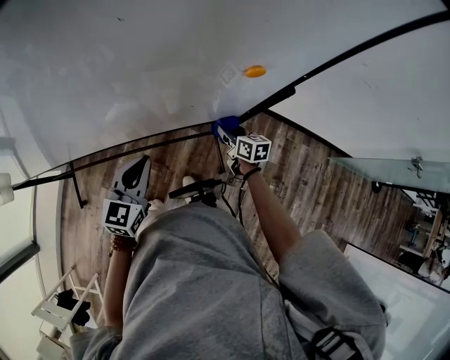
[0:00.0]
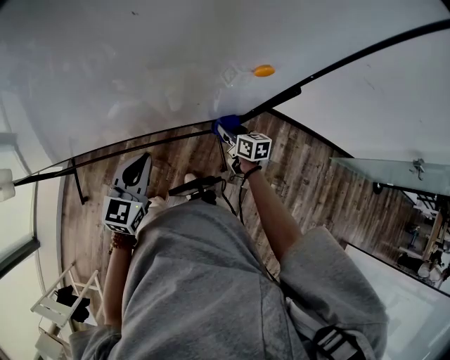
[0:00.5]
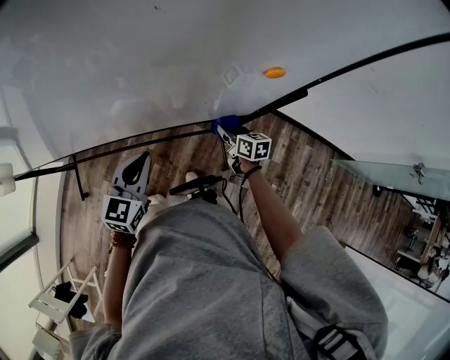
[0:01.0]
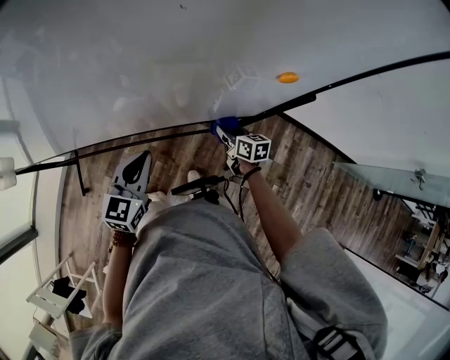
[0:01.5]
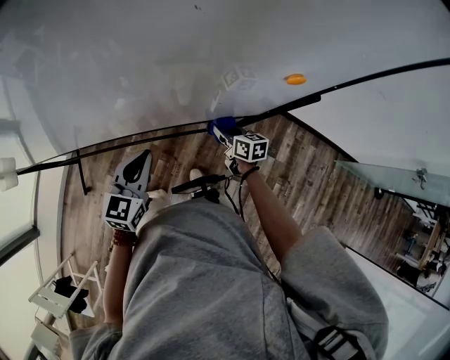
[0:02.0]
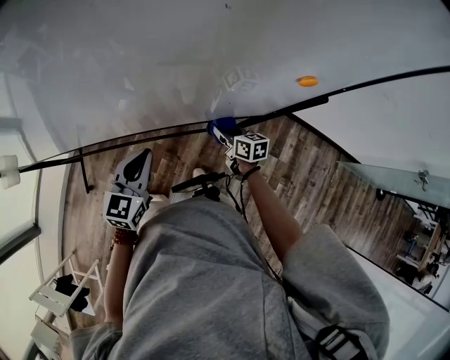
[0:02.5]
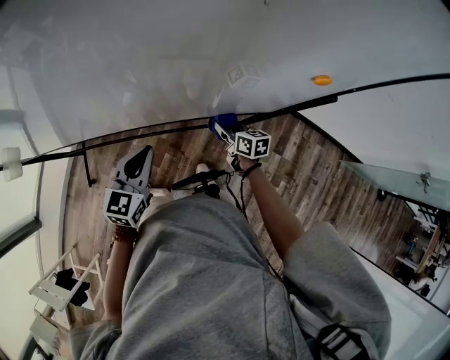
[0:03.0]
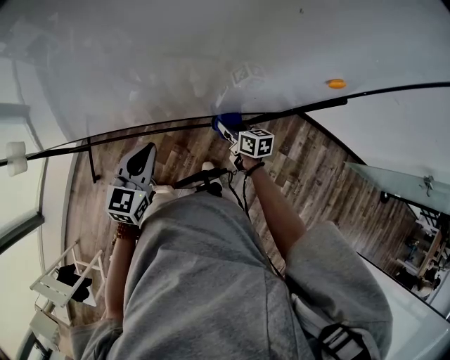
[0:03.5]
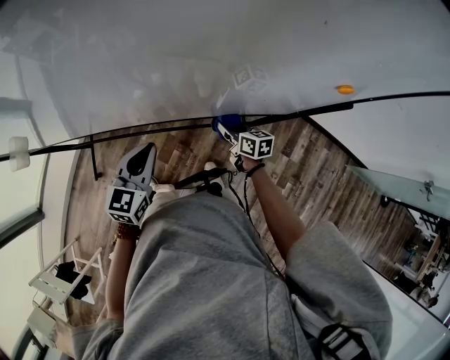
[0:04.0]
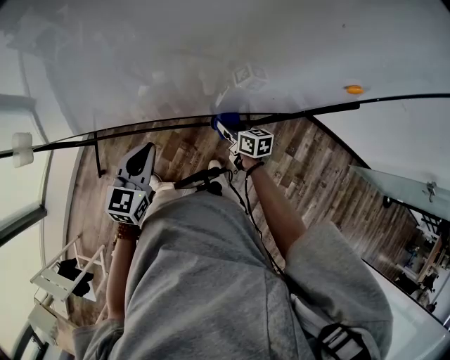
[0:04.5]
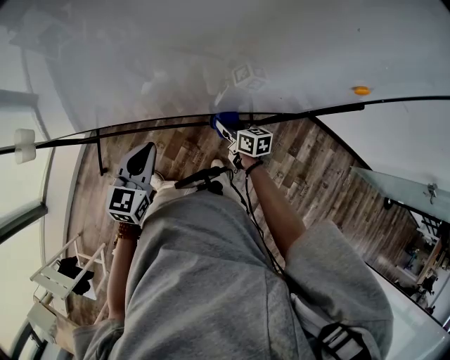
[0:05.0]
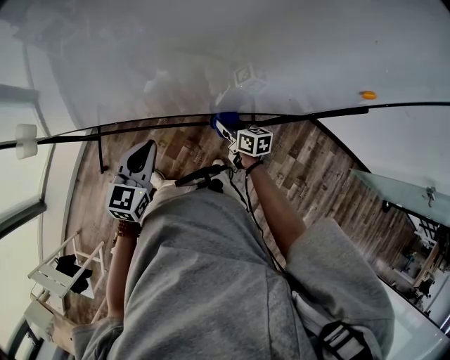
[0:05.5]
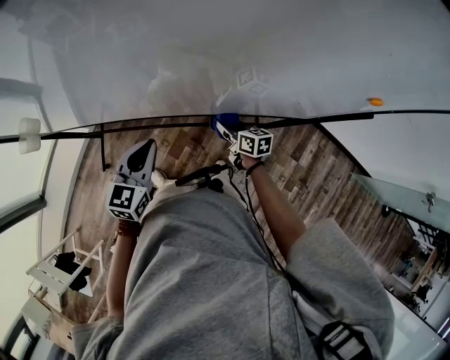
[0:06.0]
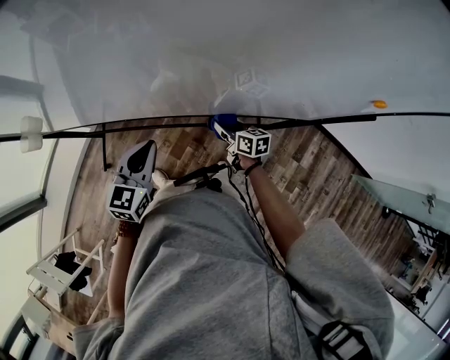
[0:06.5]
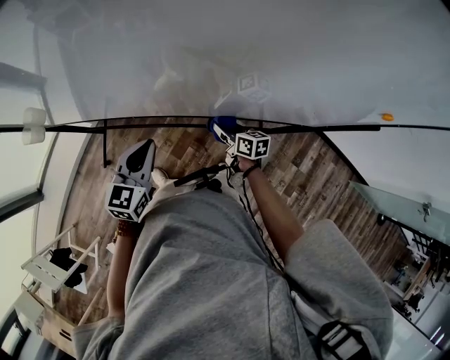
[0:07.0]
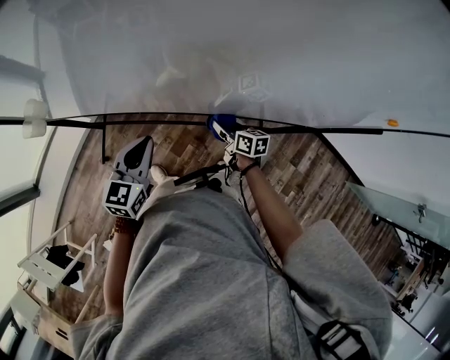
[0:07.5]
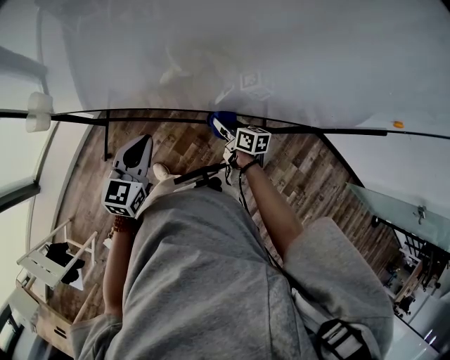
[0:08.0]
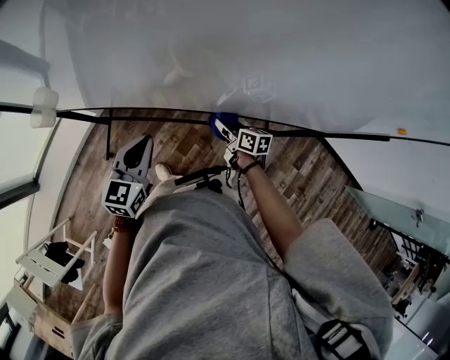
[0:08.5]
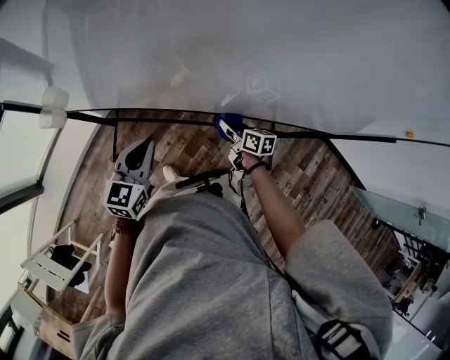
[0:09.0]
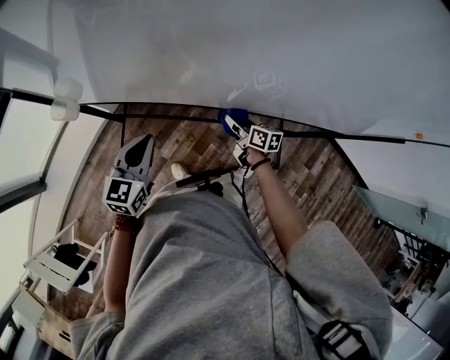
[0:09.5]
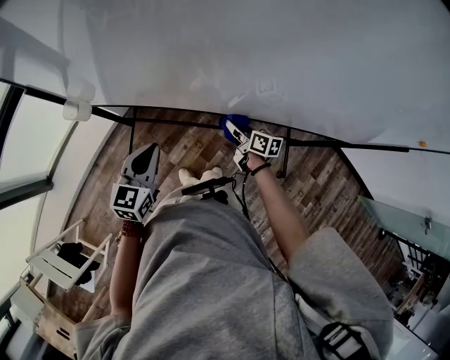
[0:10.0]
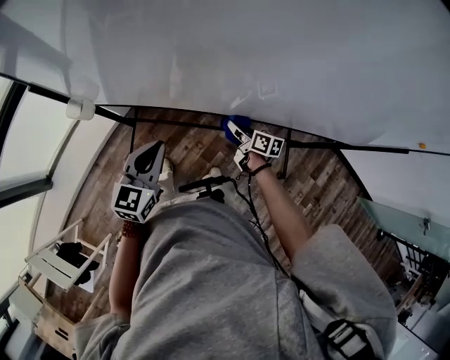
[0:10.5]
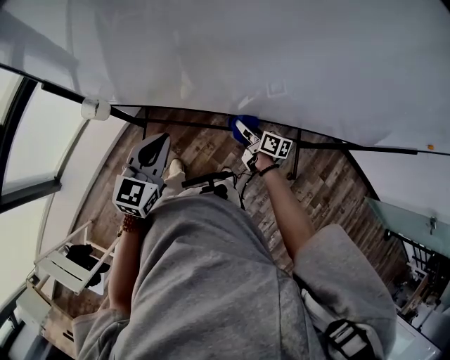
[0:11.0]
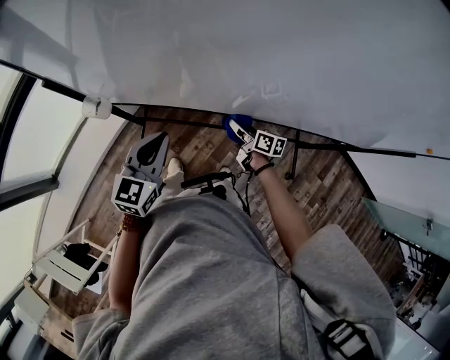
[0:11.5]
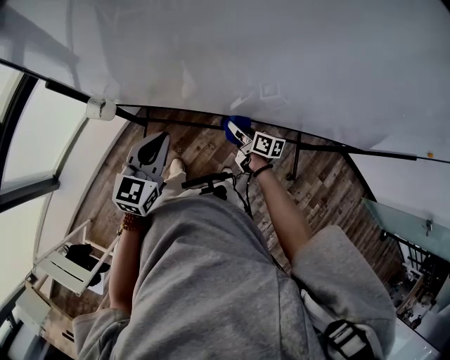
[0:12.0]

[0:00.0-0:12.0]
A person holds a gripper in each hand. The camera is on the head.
0:00.0 to 0:02.0: The left gripper changes place by roughly 5 cm. Meanwhile the right gripper heads to the left, covering some 10 cm.
0:02.0 to 0:04.0: The grippers both shift to the left by approximately 10 cm.
0:04.0 to 0:06.0: The two grippers go about 10 cm to the left.
0:06.0 to 0:08.0: The two grippers go roughly 10 cm to the left.
0:08.0 to 0:10.0: Both grippers travel together to the left, some 15 cm.
0:10.0 to 0:12.0: Both grippers travel together to the left, roughly 10 cm.

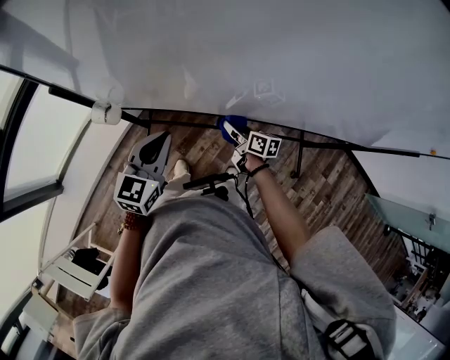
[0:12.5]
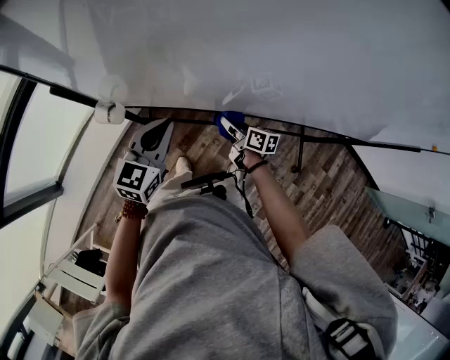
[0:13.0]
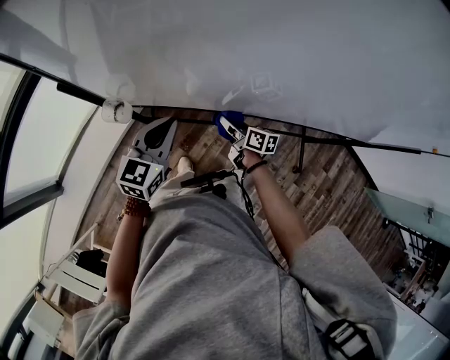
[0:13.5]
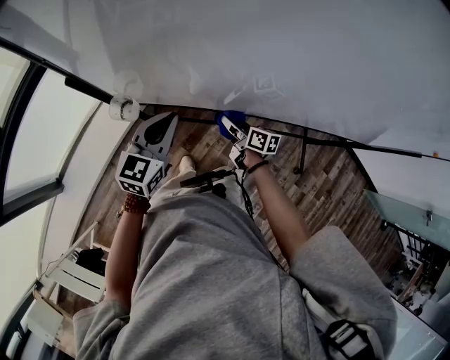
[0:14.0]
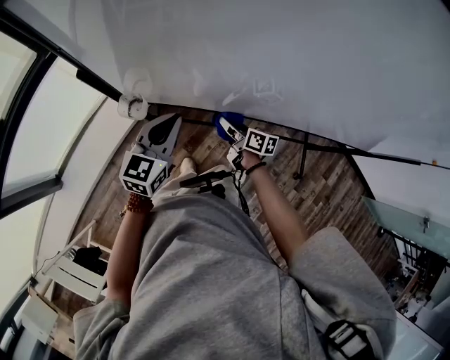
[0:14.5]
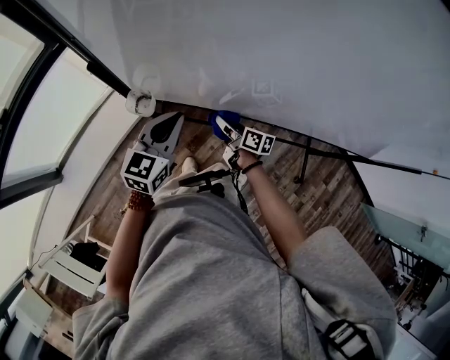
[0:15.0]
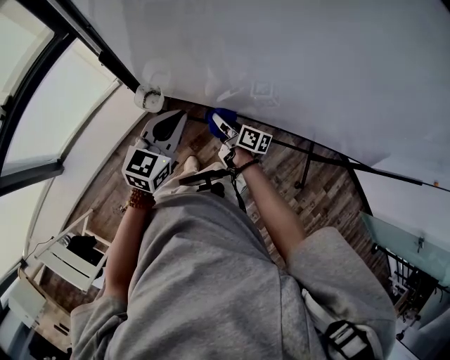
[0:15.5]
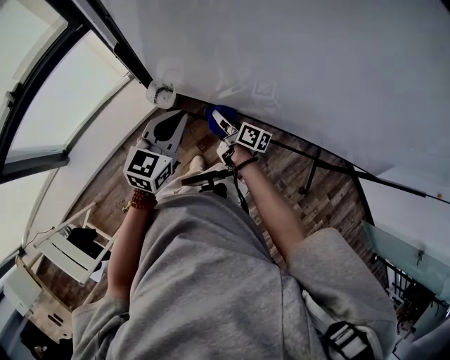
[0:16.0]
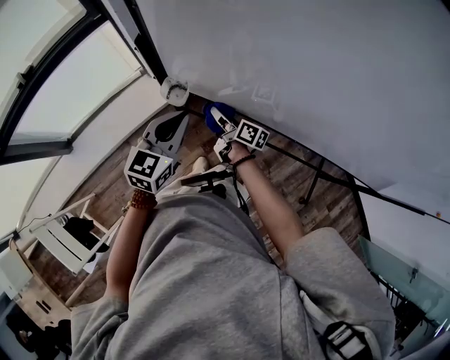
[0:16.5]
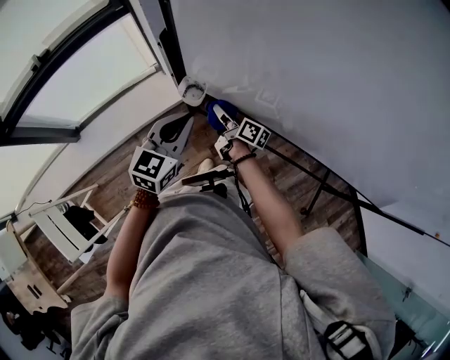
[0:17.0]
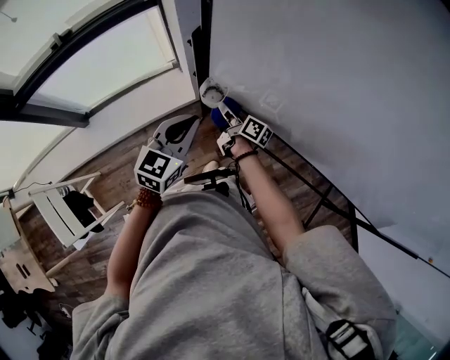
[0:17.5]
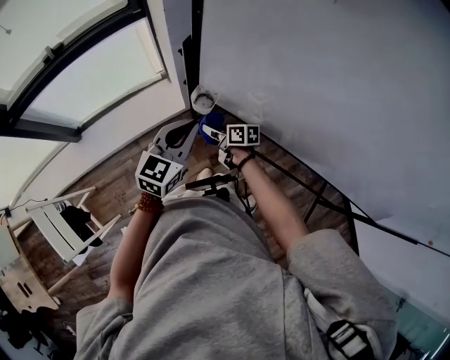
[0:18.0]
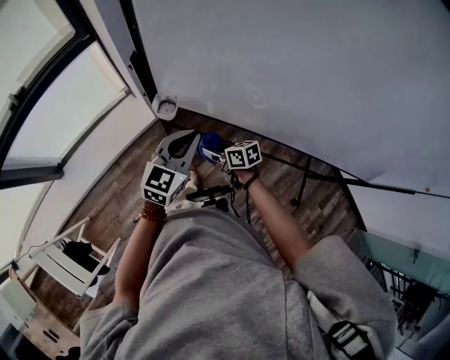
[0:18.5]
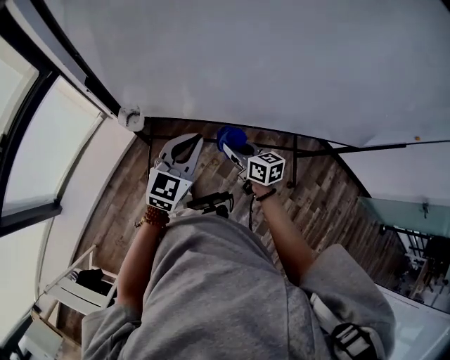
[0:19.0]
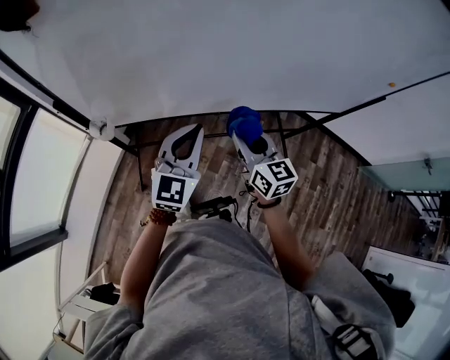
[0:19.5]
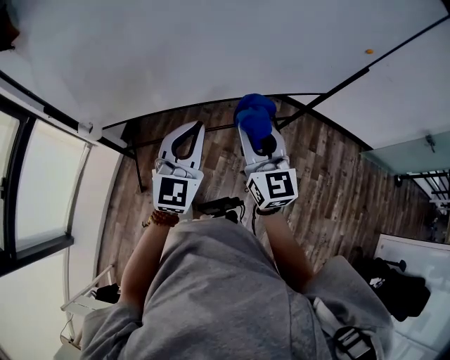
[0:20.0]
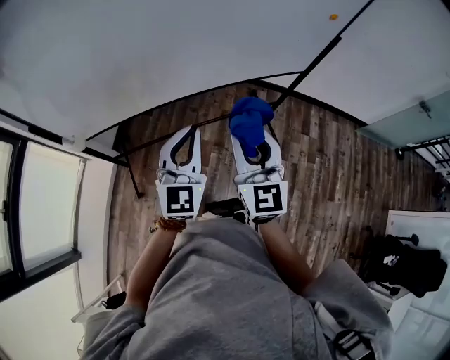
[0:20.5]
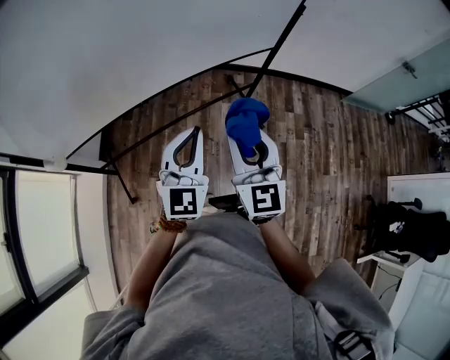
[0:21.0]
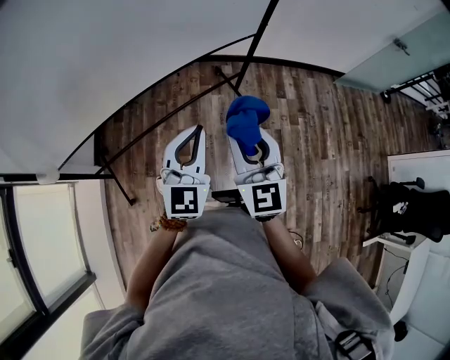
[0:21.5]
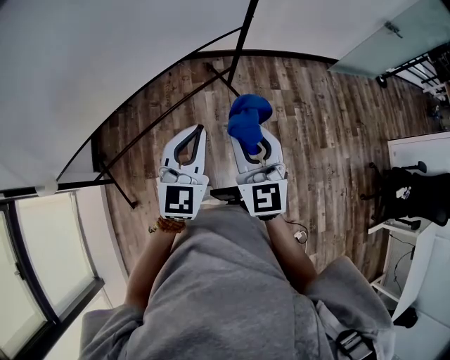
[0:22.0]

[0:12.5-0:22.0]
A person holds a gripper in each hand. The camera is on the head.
0:12.5 to 0:14.5: The two grippers go some 10 cm to the left.
0:14.5 to 0:16.5: The right gripper heads to the left, covering about 15 cm; the left gripper goes about 10 cm to the left.
0:16.5 to 0:18.0: The right gripper moves to the left, some 10 cm, and turns by roughly 30 degrees.
0:18.0 to 0:20.0: The pair of grippers is taken roughly 50 cm. The left gripper swivels about 40 degrees, while the right gripper rotates some 90 degrees.
0:20.0 to 0:22.0: The left gripper heads to the right, covering roughly 30 cm, and turns by about 20 degrees. The right gripper is displaced to the right and backward by about 25 cm, and turns by some 30 degrees.

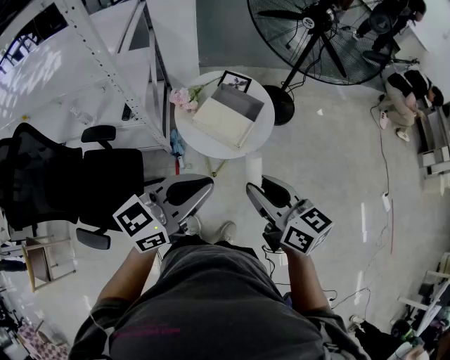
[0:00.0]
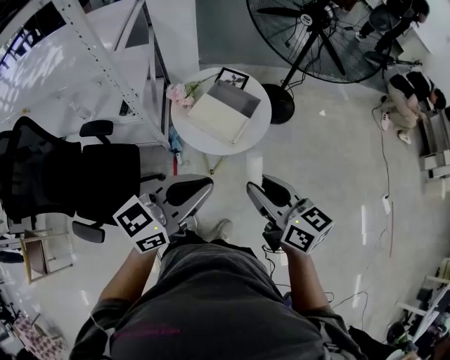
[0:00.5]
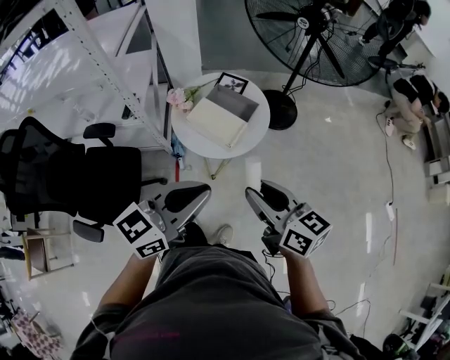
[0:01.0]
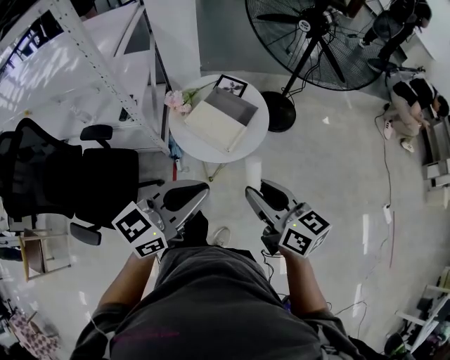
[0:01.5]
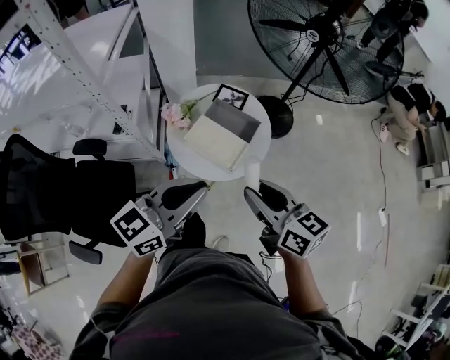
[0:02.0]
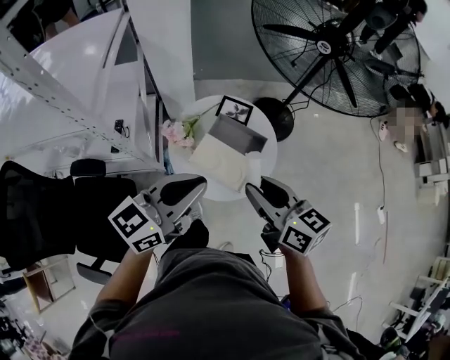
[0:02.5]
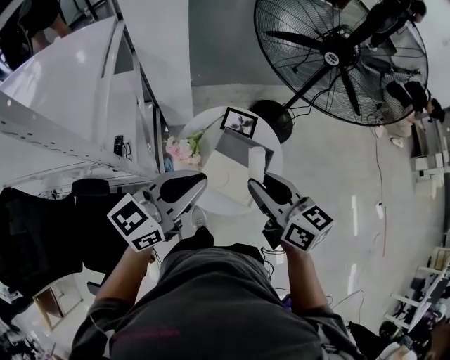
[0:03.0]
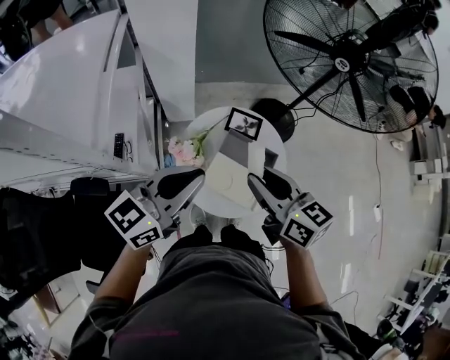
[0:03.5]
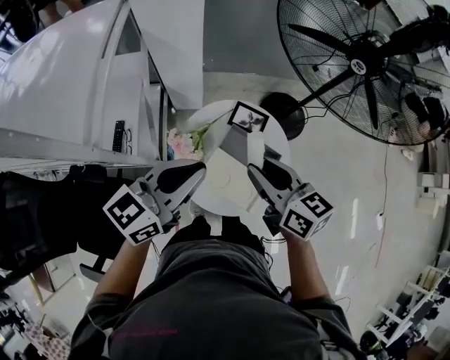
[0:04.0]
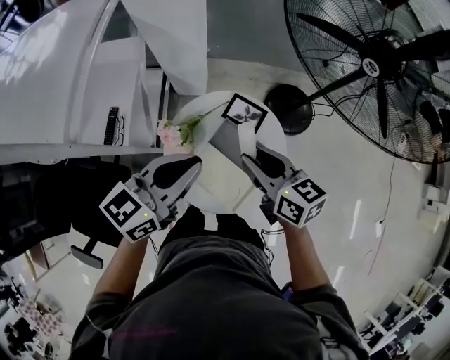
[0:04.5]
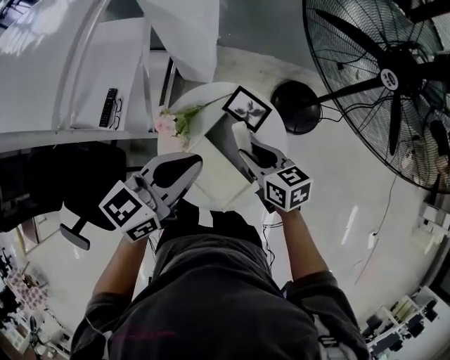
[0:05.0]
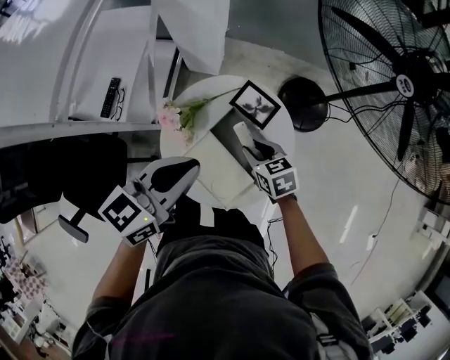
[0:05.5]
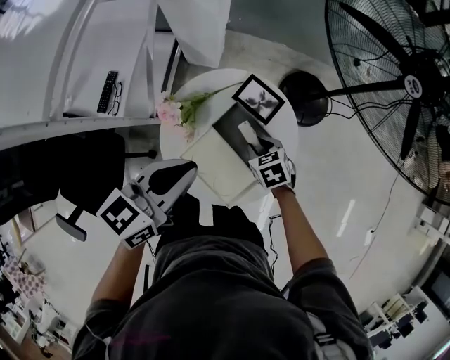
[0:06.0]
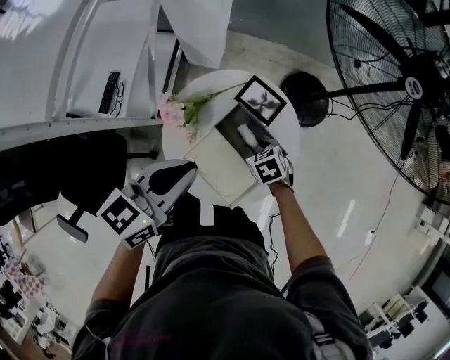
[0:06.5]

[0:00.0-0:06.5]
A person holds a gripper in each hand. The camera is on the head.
0:00.0 to 0:02.0: Both grippers travel together forward, some 10 cm.
0:02.0 to 0:04.5: Both grippers move forward, approximately 30 cm.
0:04.5 to 0:06.5: The left gripper is displaced downward by approximately 10 cm; the right gripper goes about 30 cm downward, and tips its fingers downward by approximately 50 degrees.
